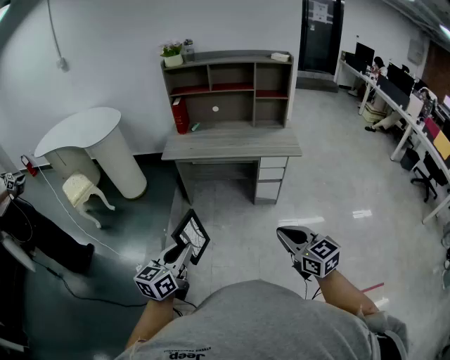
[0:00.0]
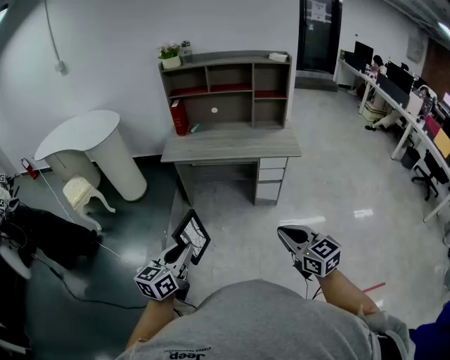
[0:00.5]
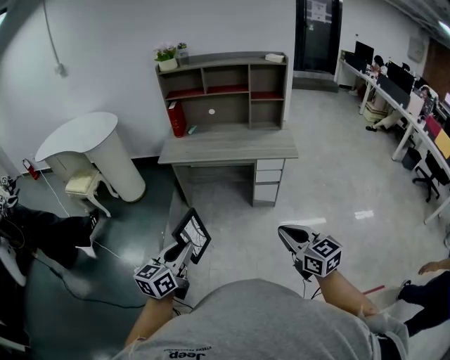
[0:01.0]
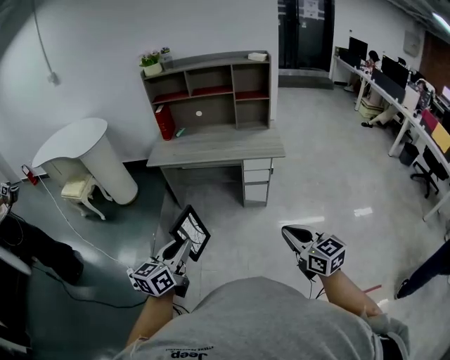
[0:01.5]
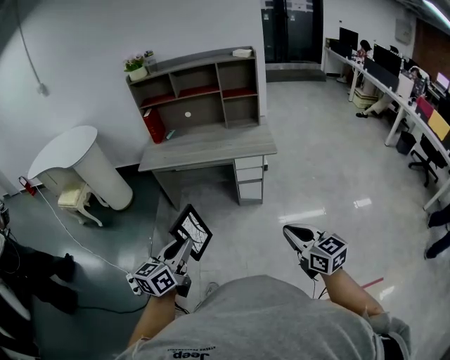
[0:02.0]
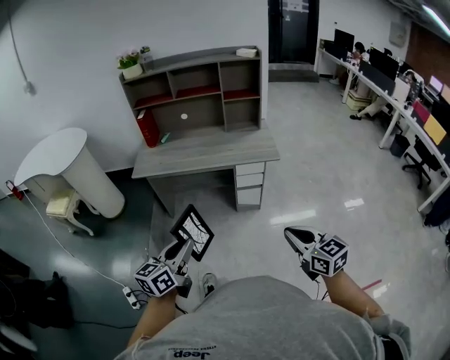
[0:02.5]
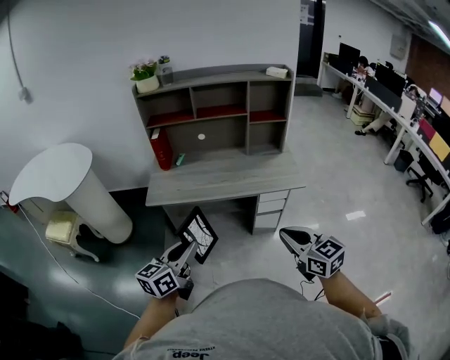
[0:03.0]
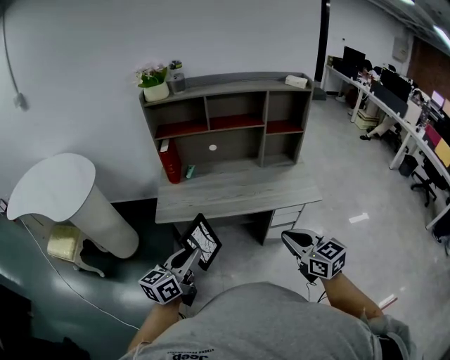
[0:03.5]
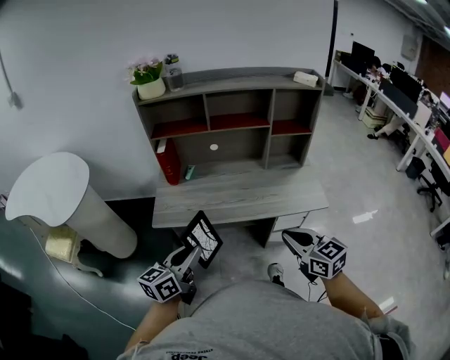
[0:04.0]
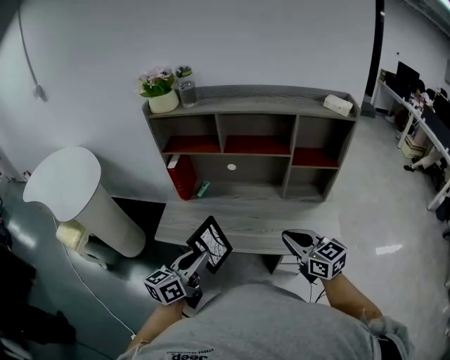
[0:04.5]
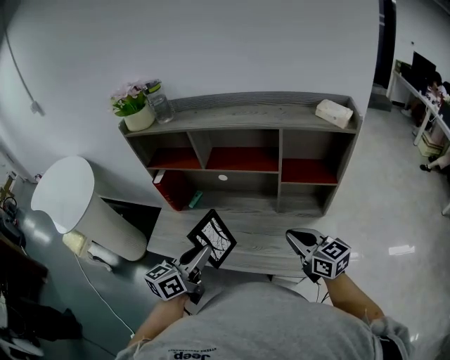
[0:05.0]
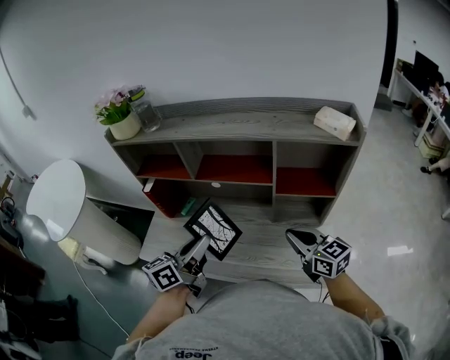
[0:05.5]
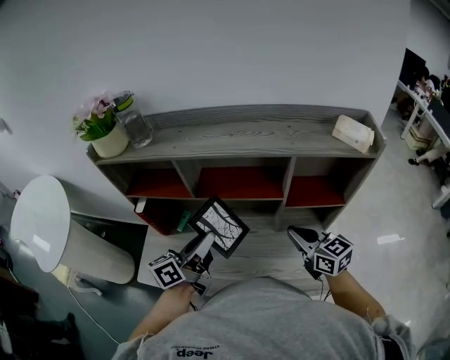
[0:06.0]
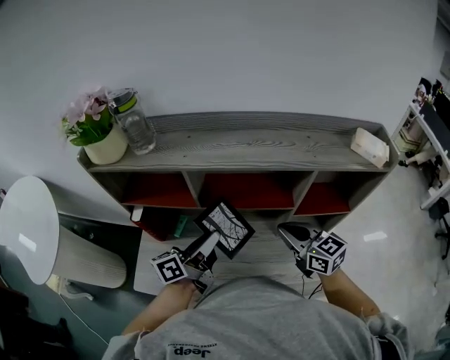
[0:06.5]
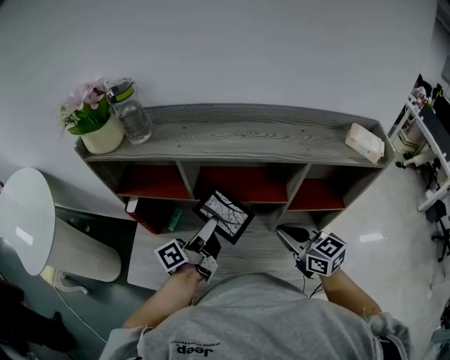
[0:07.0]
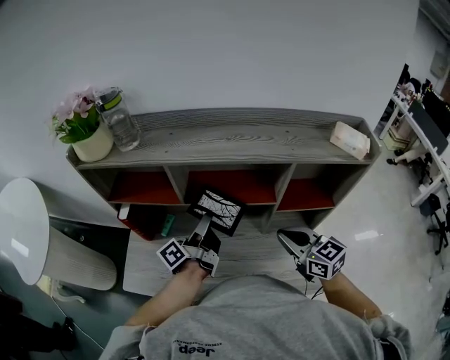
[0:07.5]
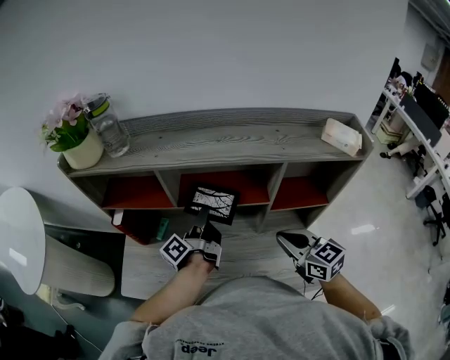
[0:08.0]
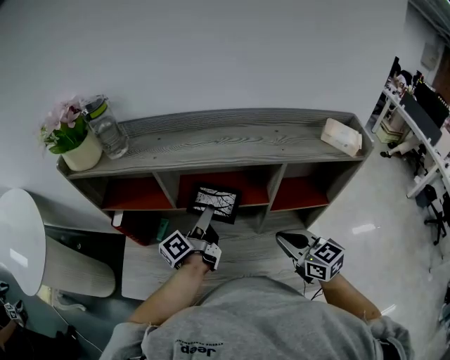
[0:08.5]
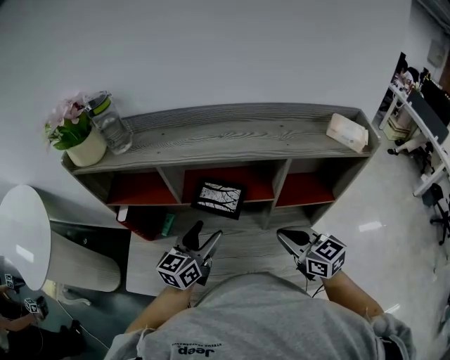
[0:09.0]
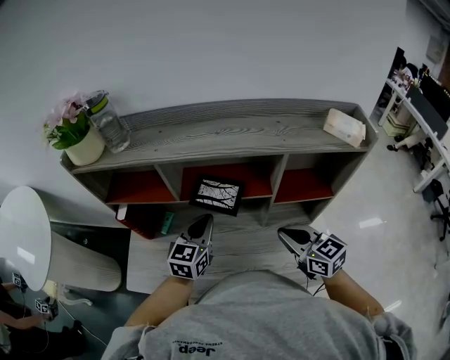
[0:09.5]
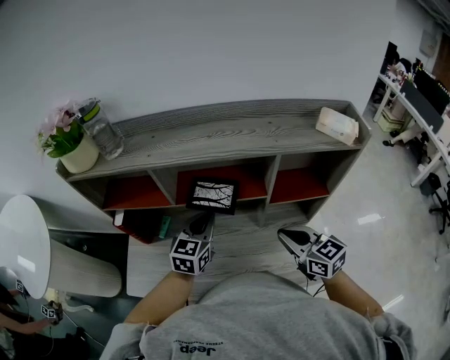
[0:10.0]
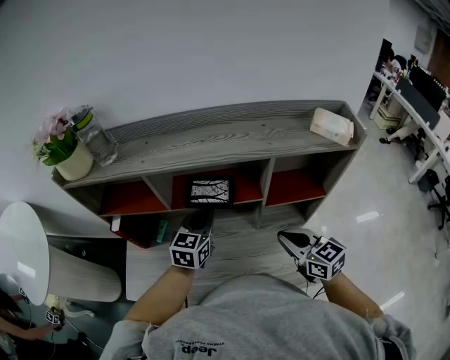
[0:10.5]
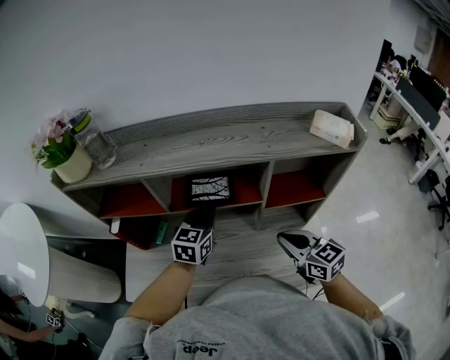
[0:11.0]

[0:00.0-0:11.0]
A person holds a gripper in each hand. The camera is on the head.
0:00.0 to 0:02.0: Both grippers travel together to the right, roughly 20 cm.
0:02.0 to 0:03.5: Both grippers are carried forward and to the left, about 40 cm.
0:03.5 to 0:05.5: The pair of grippers is taken forward and to the right, approximately 40 cm.
0:05.5 to 0:07.5: The left gripper is displaced forward by roughly 20 cm, and rotates some 40 degrees. The right gripper is displaced forward and to the left by roughly 10 cm.
0:07.5 to 0:09.0: The left gripper rotates around the line of its fingers by approximately 60 degrees, clockwise from behind, and opens.
0:09.0 to 0:11.0: The left gripper shifts about 10 cm forward and to the right, turns by some 20 degrees, and closes up.

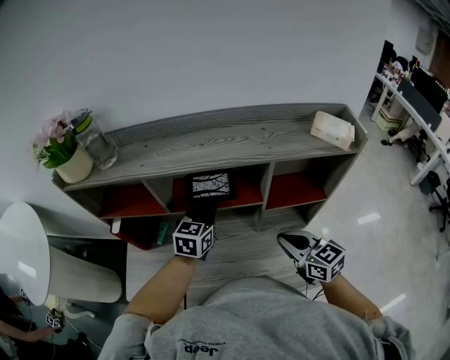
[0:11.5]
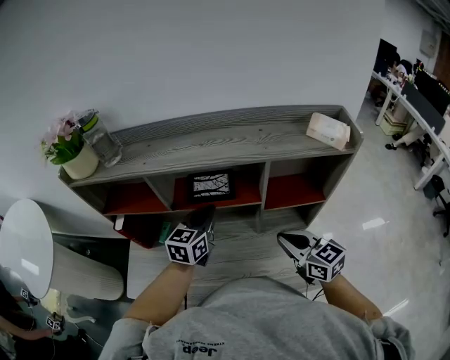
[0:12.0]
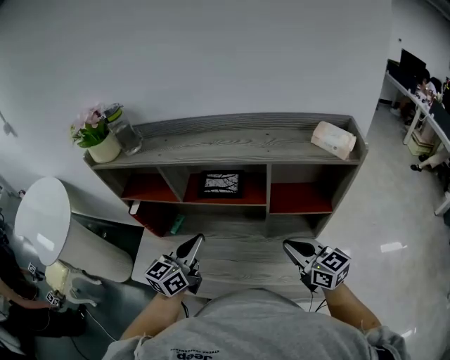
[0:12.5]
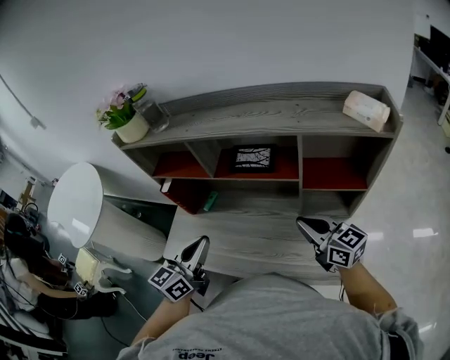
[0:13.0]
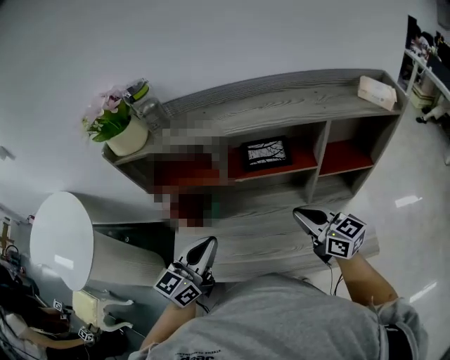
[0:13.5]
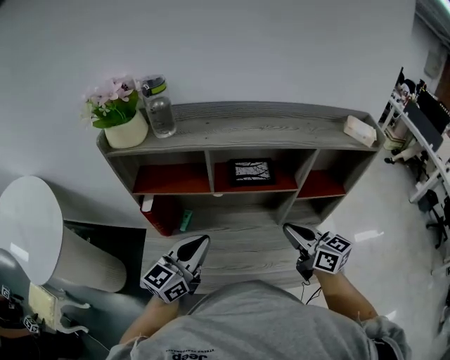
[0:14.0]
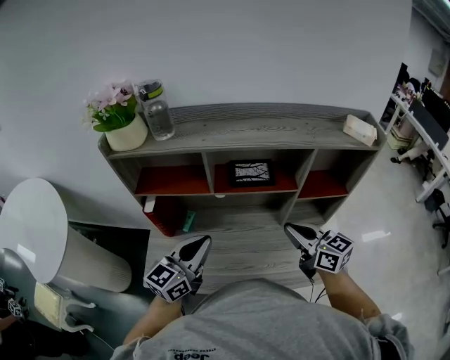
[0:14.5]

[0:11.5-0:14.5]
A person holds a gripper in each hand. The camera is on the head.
0:11.5 to 0:13.0: The right gripper turns by approximately 20 degrees. The left gripper goes about 25 cm backward and to the left, and swivels approximately 20 degrees.
0:13.0 to 0:14.5: The right gripper shifts approximately 10 cm to the left, while the left gripper is displaced forward by approximately 5 cm.

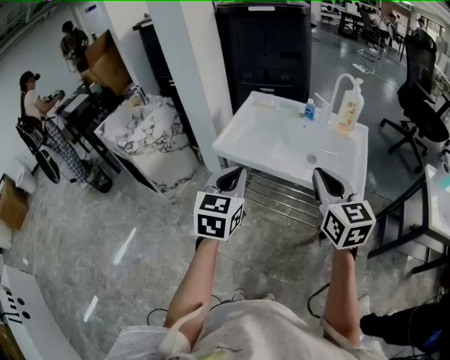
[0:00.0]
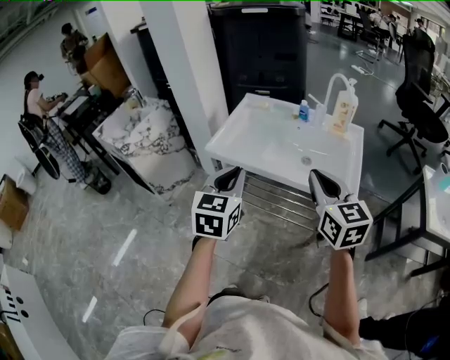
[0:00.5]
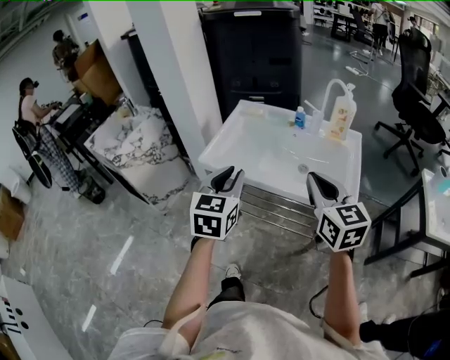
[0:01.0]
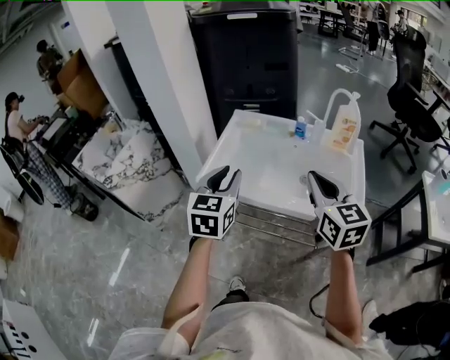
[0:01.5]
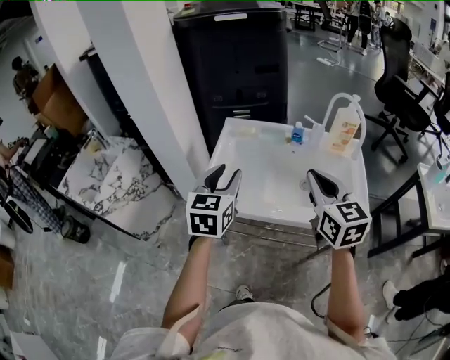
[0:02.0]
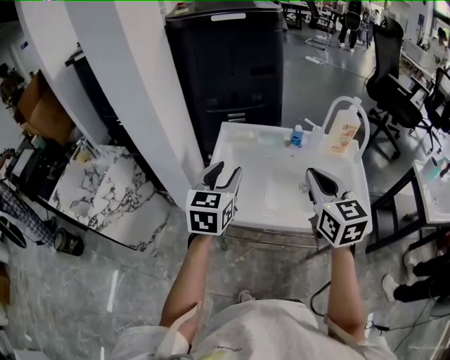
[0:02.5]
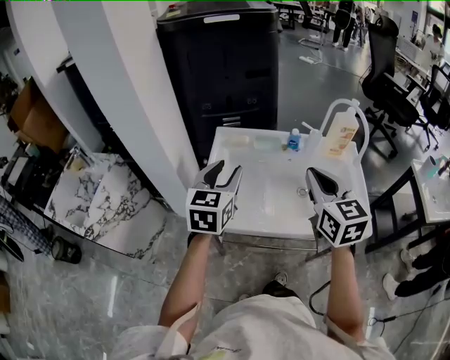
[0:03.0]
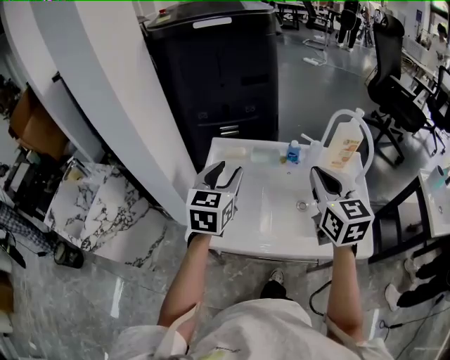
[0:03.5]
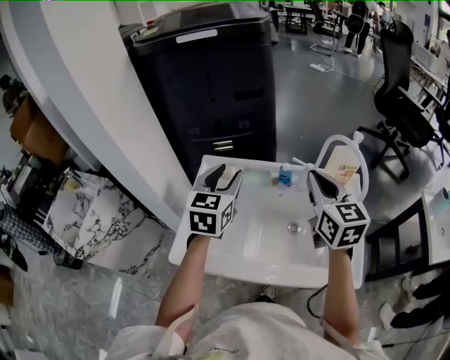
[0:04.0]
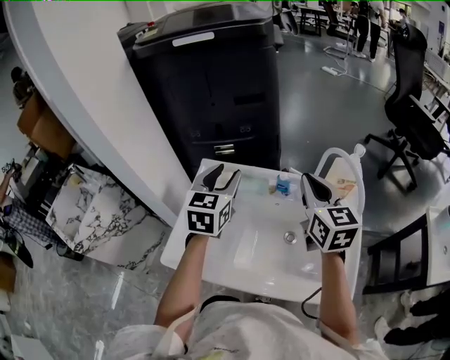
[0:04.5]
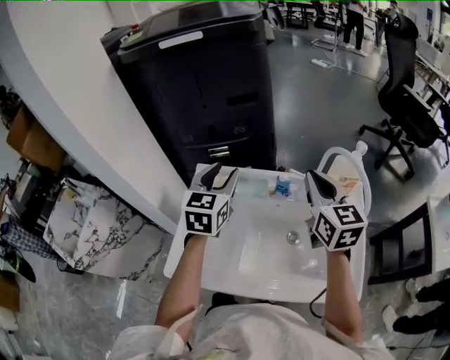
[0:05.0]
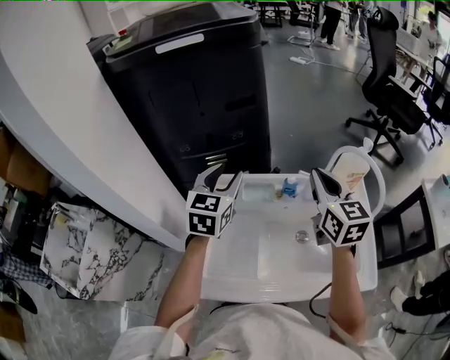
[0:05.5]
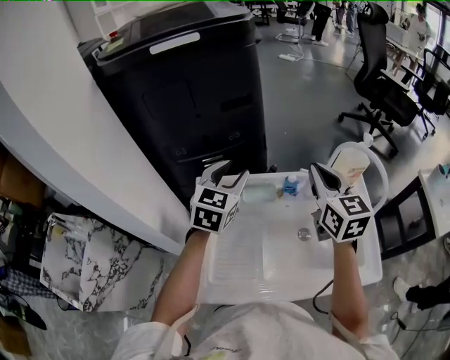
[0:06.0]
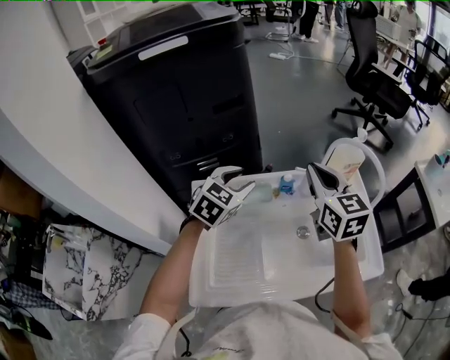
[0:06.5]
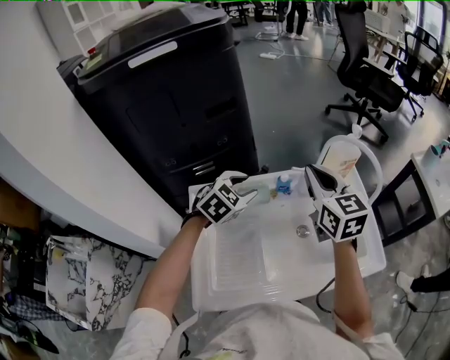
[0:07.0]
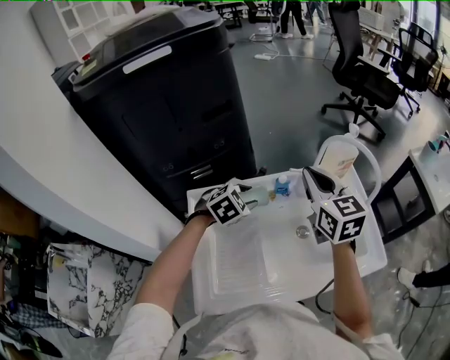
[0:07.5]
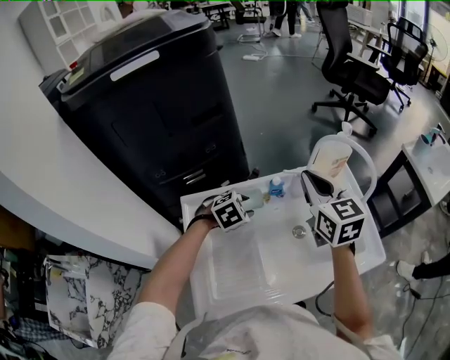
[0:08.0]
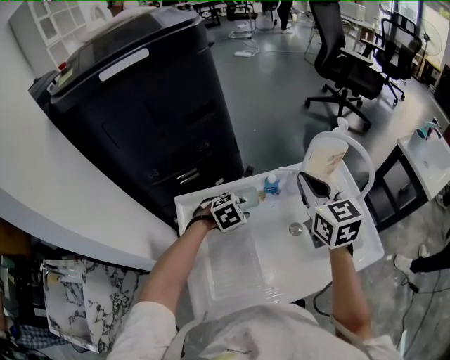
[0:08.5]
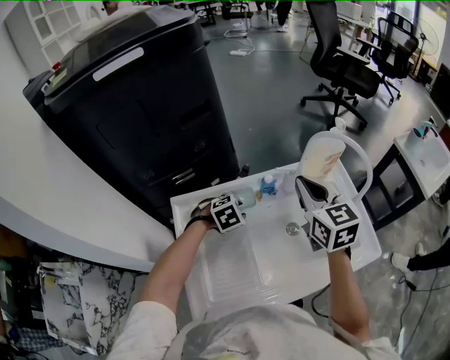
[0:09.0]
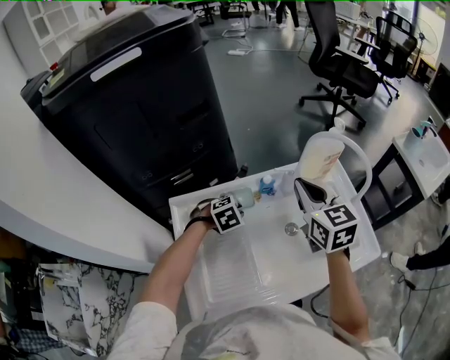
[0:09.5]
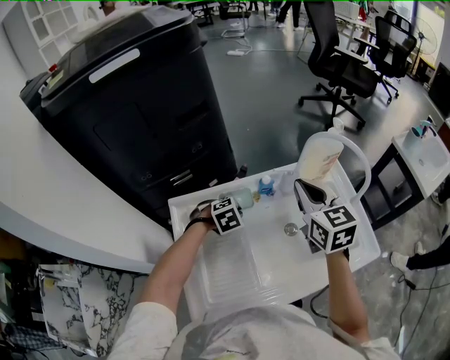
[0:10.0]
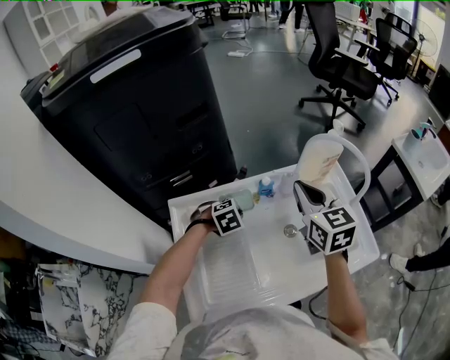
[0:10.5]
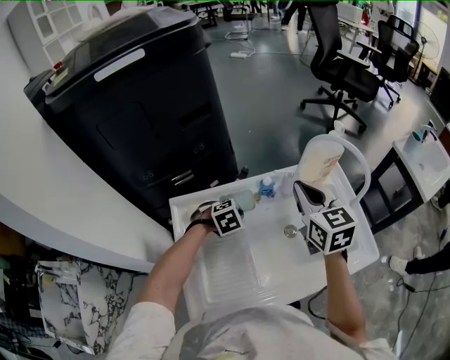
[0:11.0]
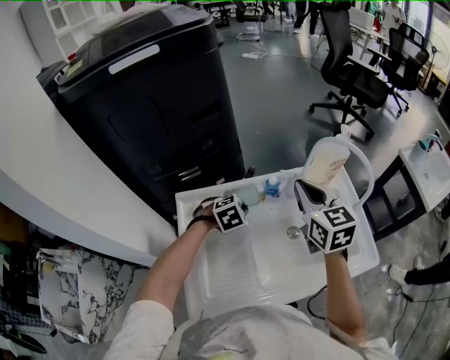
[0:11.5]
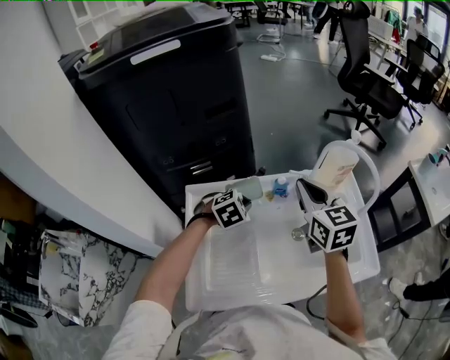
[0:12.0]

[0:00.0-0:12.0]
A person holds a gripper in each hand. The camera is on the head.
0:00.0 to 0:02.0: Both grippers move forward, some 20 cm. The left gripper opens up.
0:02.0 to 0:04.0: Both grippers move forward, approximately 20 cm.
0:04.0 to 0:06.0: Both grippers travel together forward, approximately 10 cm.
0:06.0 to 0:08.0: The left gripper travels downward and to the right by roughly 20 cm, and tips its fingers downward by about 40 degrees.
0:08.0 to 0:10.0: The left gripper goes some 5 cm downward, and closes.
0:10.0 to 0:12.0: The left gripper travels upward by roughly 5 cm.

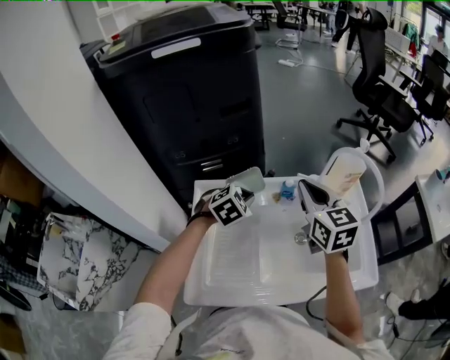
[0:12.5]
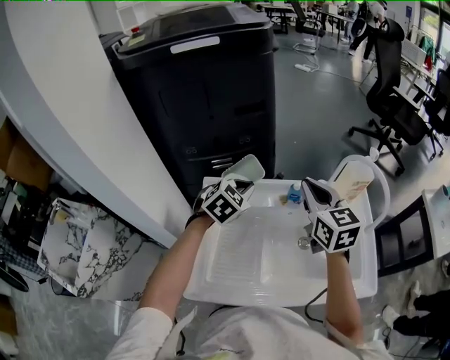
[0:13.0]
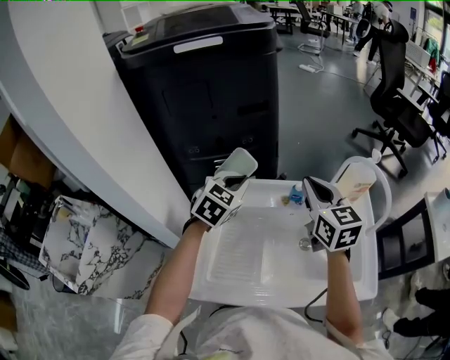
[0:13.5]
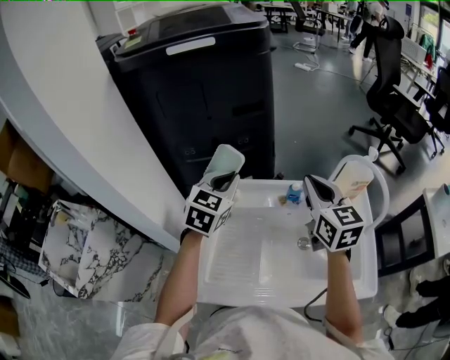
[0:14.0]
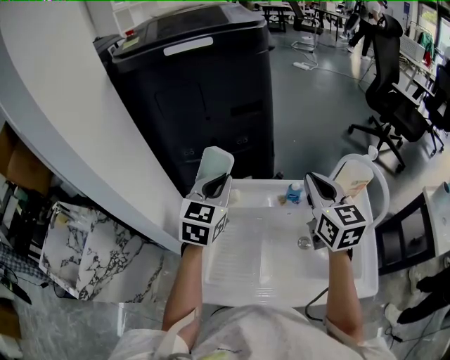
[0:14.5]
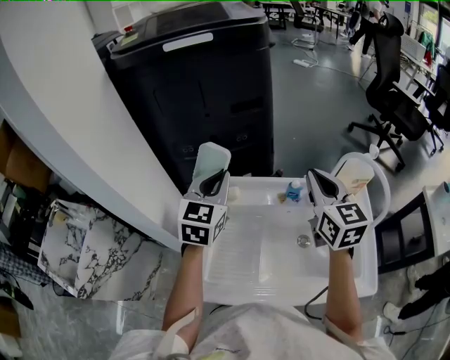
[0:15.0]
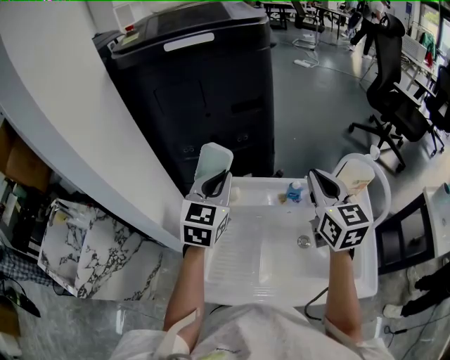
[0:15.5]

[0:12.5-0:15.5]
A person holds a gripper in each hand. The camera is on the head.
0:12.5 to 0:14.0: The left gripper travels upward and to the left by roughly 15 cm, and turns by roughly 40 degrees.
0:14.0 to 0:15.5: The grippers move only a little.
